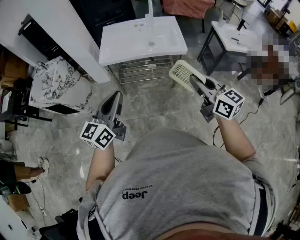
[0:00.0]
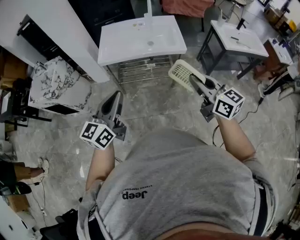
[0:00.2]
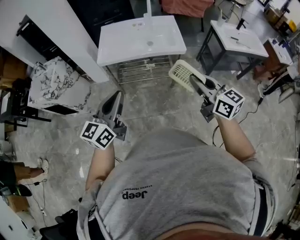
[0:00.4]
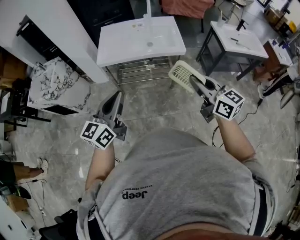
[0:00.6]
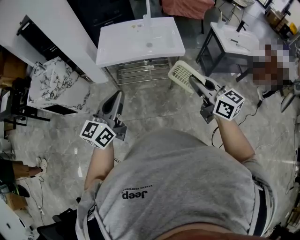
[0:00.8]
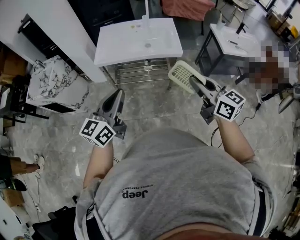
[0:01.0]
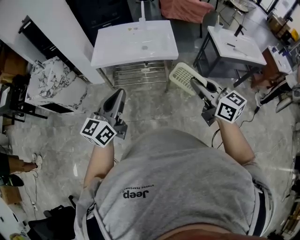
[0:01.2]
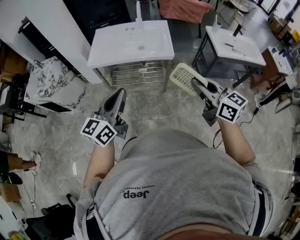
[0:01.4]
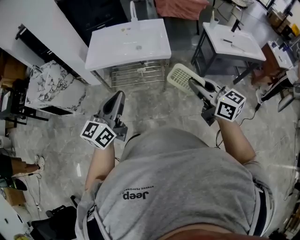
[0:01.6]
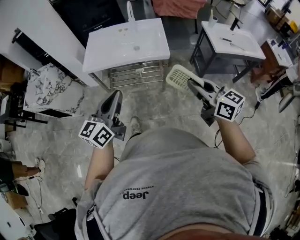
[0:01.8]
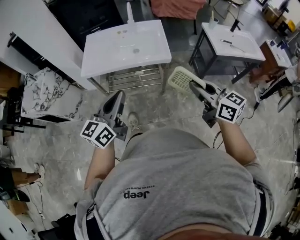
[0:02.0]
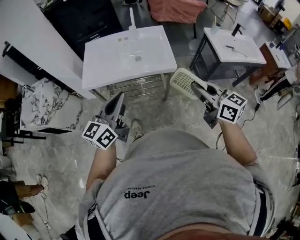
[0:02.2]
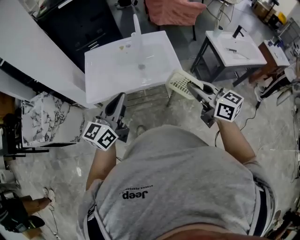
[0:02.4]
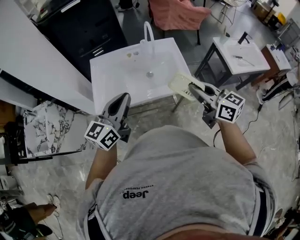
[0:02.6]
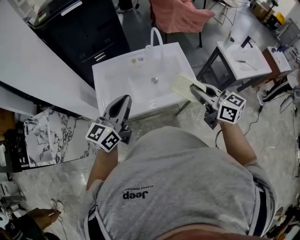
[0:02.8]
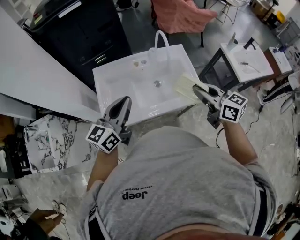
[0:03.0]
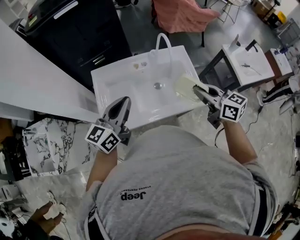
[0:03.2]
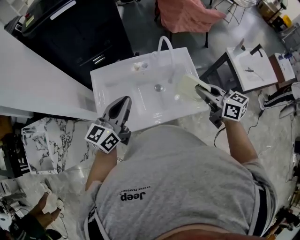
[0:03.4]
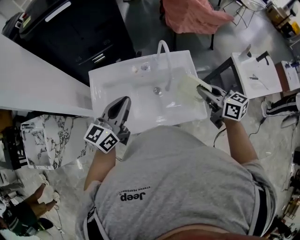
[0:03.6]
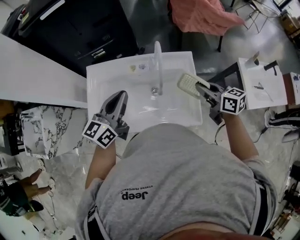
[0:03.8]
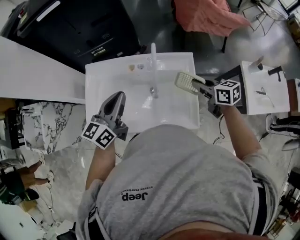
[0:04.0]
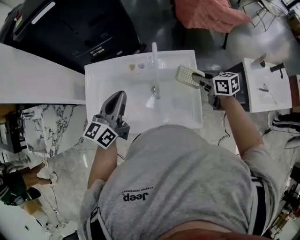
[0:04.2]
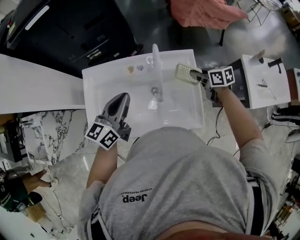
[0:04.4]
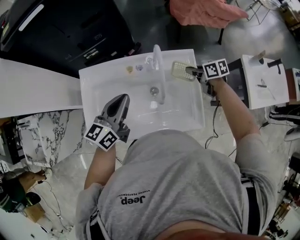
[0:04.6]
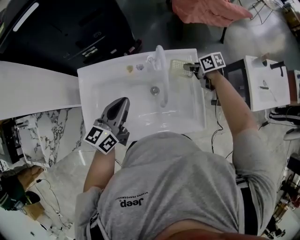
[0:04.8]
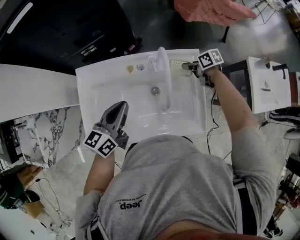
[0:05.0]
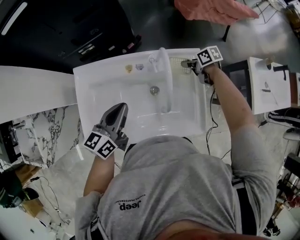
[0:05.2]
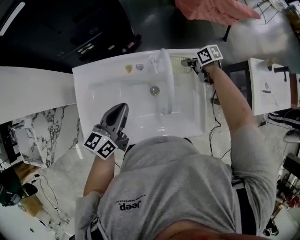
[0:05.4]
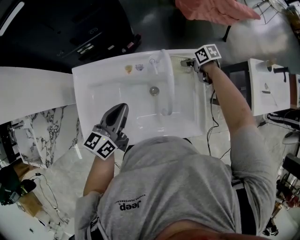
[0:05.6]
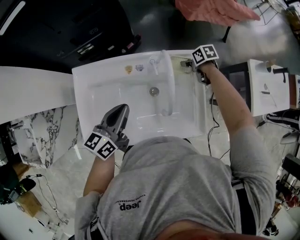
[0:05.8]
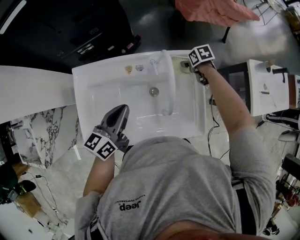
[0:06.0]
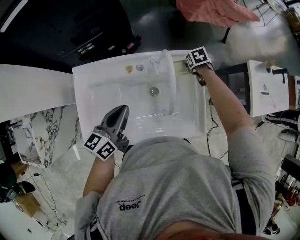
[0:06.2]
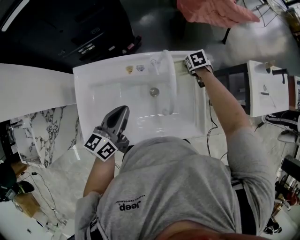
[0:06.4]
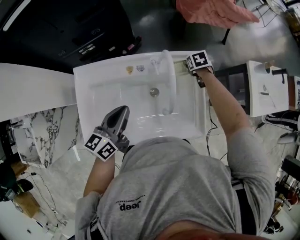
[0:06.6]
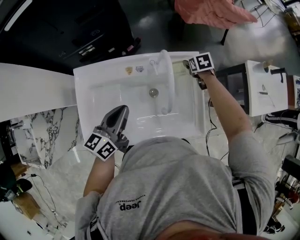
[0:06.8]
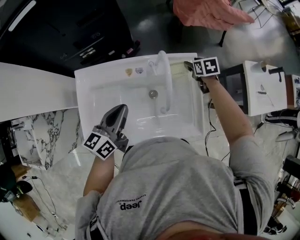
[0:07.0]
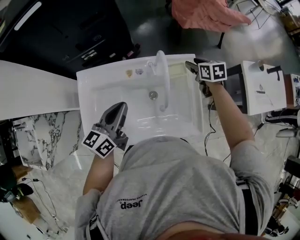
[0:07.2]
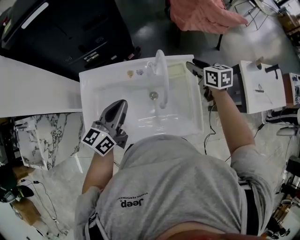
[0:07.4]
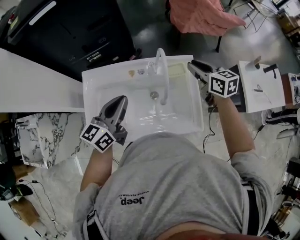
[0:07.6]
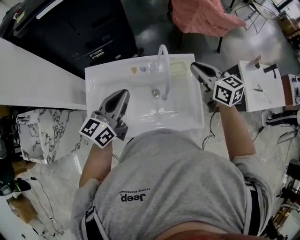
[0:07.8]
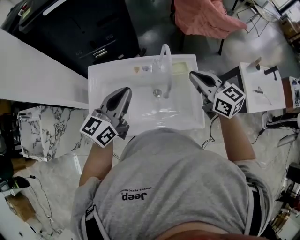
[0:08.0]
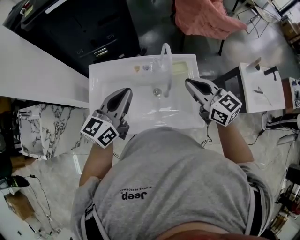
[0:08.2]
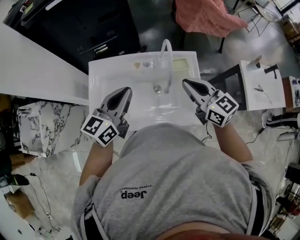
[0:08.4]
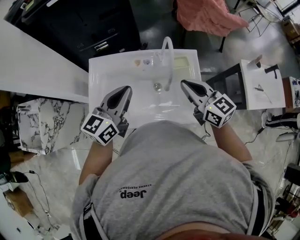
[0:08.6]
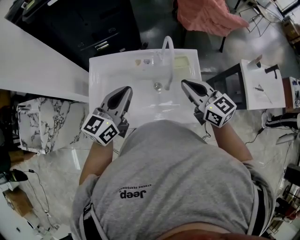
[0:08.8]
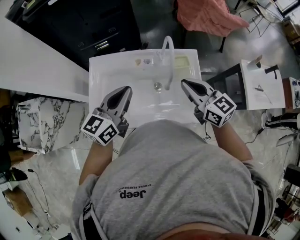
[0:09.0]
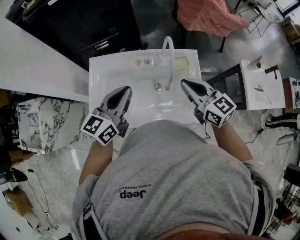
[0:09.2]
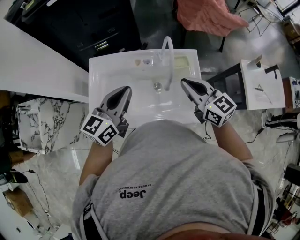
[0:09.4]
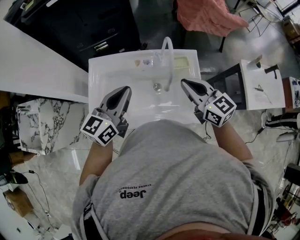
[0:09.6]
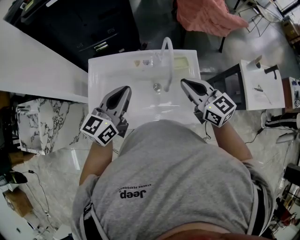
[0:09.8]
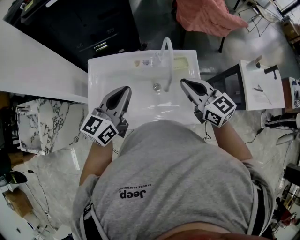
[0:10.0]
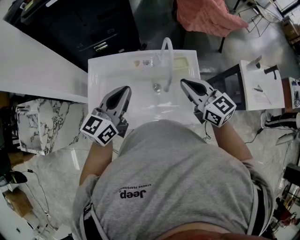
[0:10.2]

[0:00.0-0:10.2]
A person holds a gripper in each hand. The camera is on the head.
0.0 to 1.4 s: The two grippers go some 15 cm to the right.
1.4 to 3.0 s: Both grippers are carried forward, approximately 50 cm.
3.0 to 4.4 s: The left gripper moves forward, to the right and downward, about 20 cm. The right gripper shifts about 40 cm forward, downward and to the right, and changes its angle by roughly 30 degrees.
4.4 to 5.8 s: The right gripper goes approximately 15 cm downward and forward, rotates roughly 30 degrees, and opens up. Meanwhile the left gripper shifts roughly 5 cm downward.
5.8 to 7.2 s: The right gripper is displaced upward by some 15 cm, and changes its angle by approximately 30 degrees.
7.2 to 8.8 s: The left gripper goes some 10 cm upward and backward. The right gripper shifts some 30 cm backward, upward and to the left, angles its fingers upward, by about 30 degrees, and closes its fingers.
8.8 to 10.2 s: Both grippers stay put.

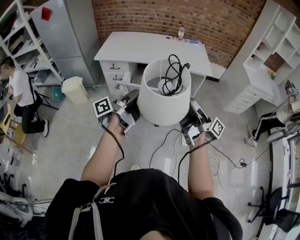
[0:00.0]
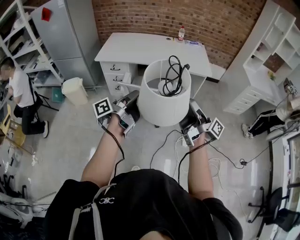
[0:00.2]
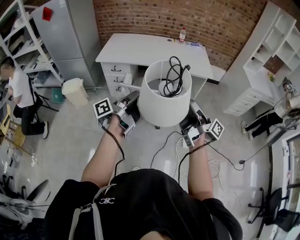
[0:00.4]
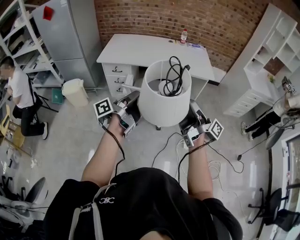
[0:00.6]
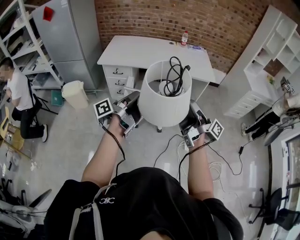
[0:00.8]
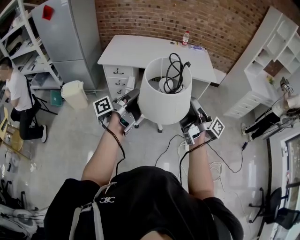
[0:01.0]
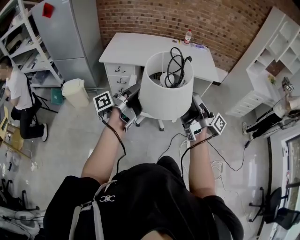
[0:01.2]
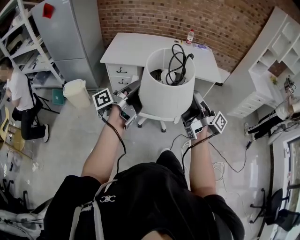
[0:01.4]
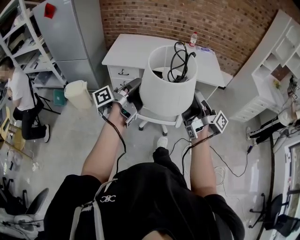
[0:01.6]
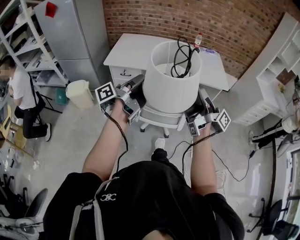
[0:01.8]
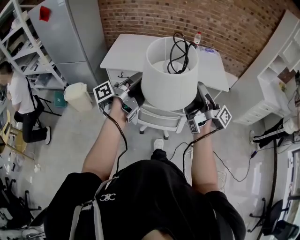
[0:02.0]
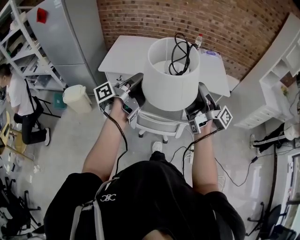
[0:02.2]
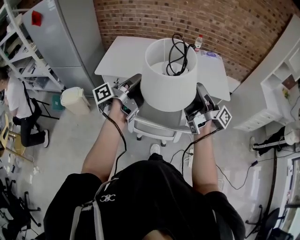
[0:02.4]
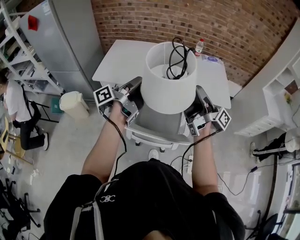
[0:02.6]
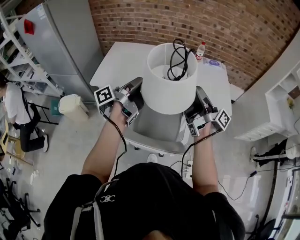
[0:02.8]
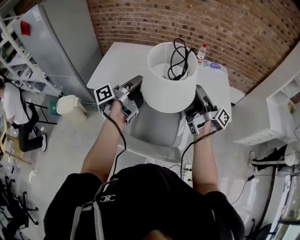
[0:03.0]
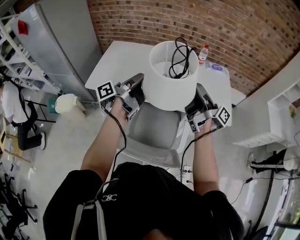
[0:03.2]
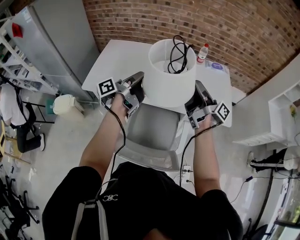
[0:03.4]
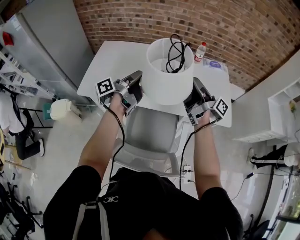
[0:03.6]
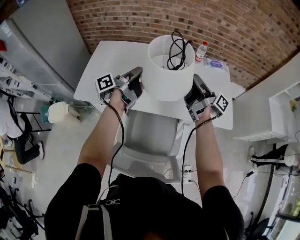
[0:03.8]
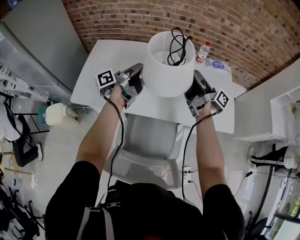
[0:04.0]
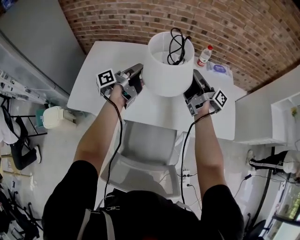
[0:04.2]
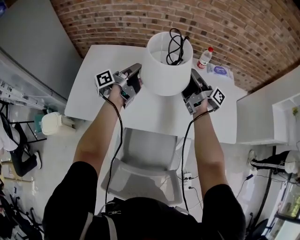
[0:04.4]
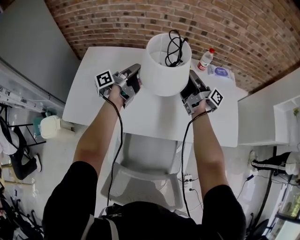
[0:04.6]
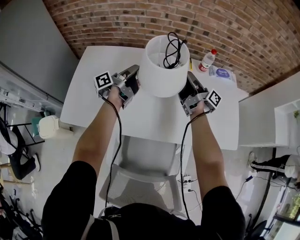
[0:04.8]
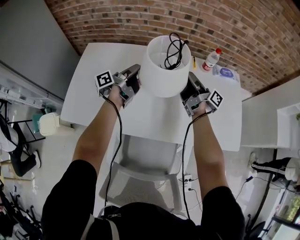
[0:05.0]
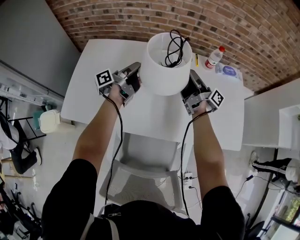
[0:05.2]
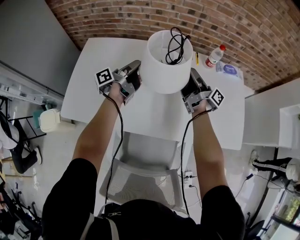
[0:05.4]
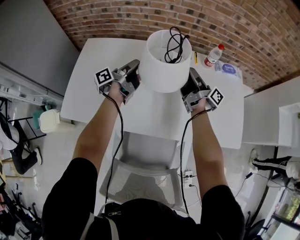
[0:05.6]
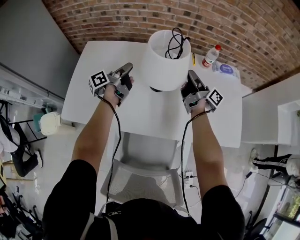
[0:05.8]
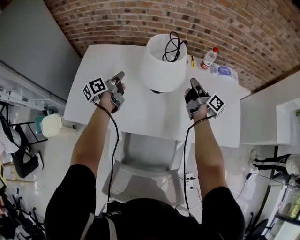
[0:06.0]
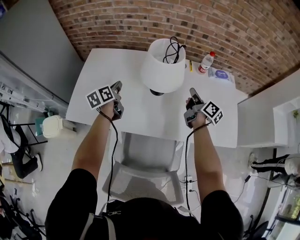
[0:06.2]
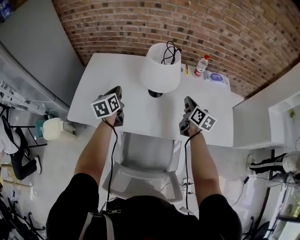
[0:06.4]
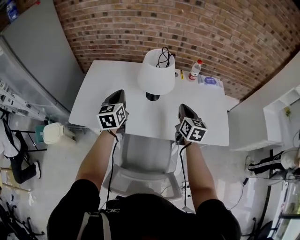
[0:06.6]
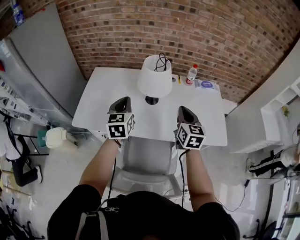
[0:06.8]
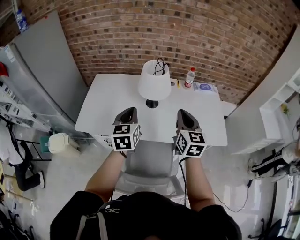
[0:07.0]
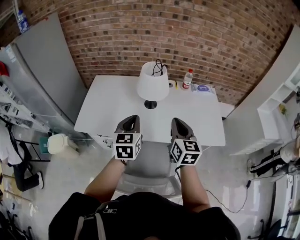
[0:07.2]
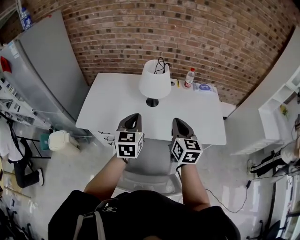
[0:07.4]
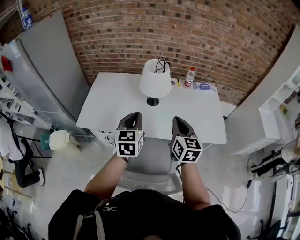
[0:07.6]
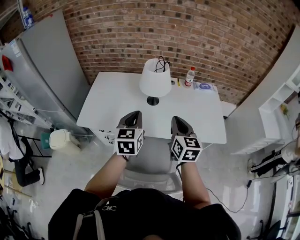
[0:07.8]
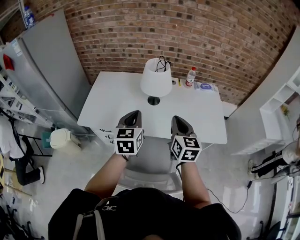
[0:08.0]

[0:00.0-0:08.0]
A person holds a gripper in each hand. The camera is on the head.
0.0 to 1.6 s: The right gripper goes approximately 15 cm forward and to the left; the left gripper shifts roughly 15 cm to the left and forward.
1.6 to 3.2 s: Both grippers are carried forward, about 40 cm.
3.2 to 4.8 s: Both grippers move forward and downward, about 40 cm.
4.8 to 6.4 s: The left gripper is displaced backward and to the left by some 15 cm, and rotates roughly 70 degrees. Meanwhile the right gripper travels backward by about 10 cm, and angles its fingers downward, by approximately 30 degrees.
6.4 to 8.0 s: The left gripper travels backward, upward and to the right by about 30 cm, and turns by some 20 degrees, while the right gripper shifts some 25 cm backward and upward, and turns by roughly 30 degrees.

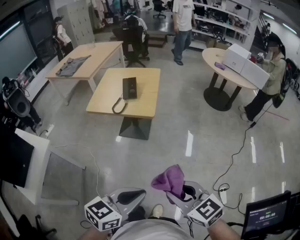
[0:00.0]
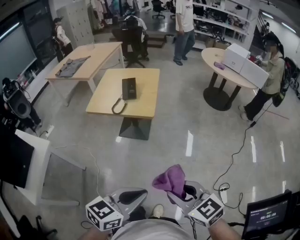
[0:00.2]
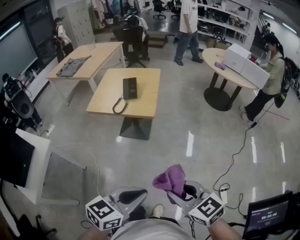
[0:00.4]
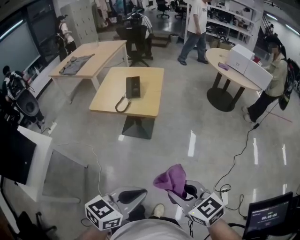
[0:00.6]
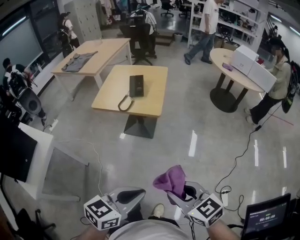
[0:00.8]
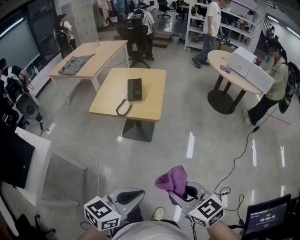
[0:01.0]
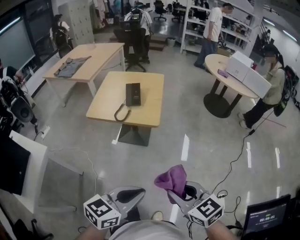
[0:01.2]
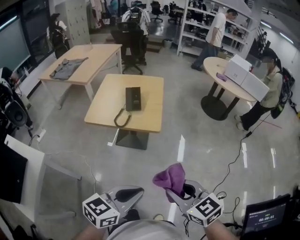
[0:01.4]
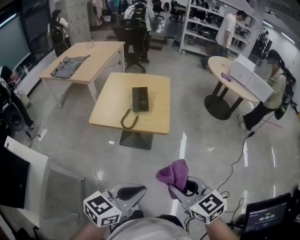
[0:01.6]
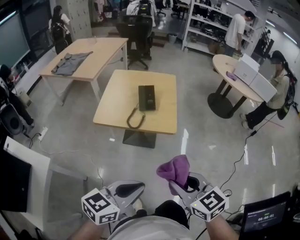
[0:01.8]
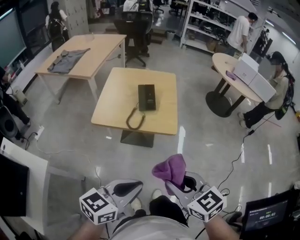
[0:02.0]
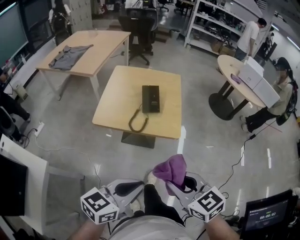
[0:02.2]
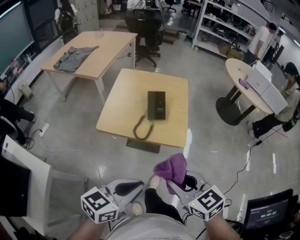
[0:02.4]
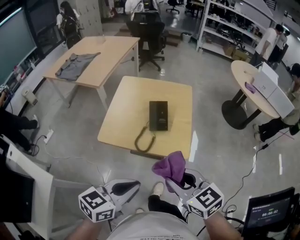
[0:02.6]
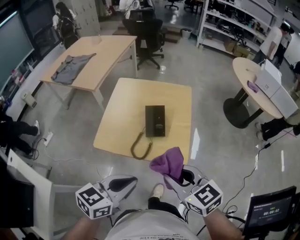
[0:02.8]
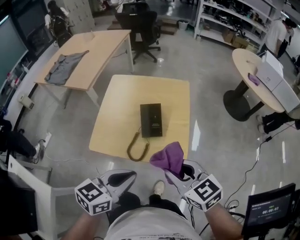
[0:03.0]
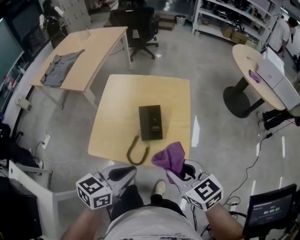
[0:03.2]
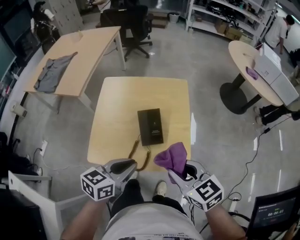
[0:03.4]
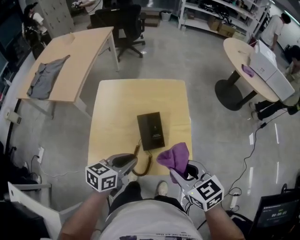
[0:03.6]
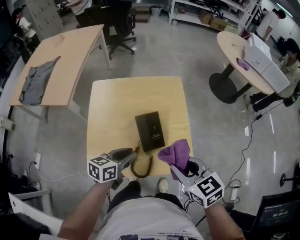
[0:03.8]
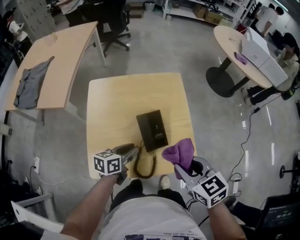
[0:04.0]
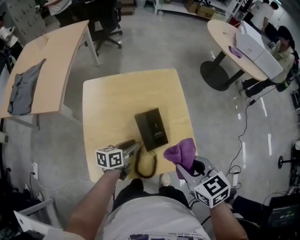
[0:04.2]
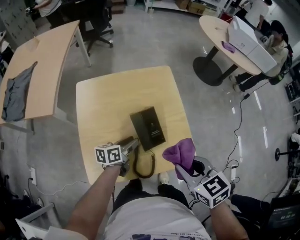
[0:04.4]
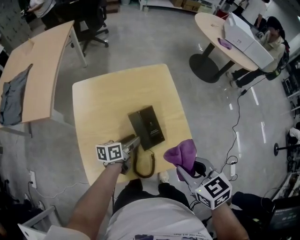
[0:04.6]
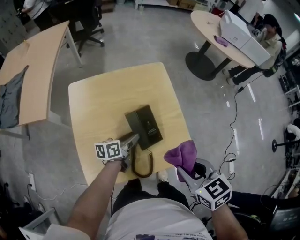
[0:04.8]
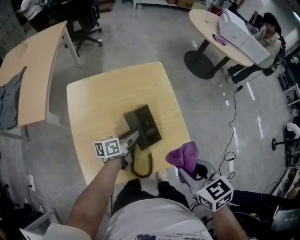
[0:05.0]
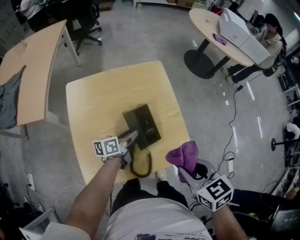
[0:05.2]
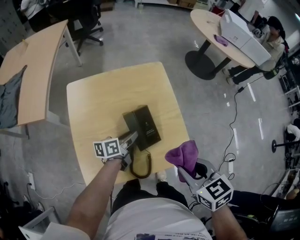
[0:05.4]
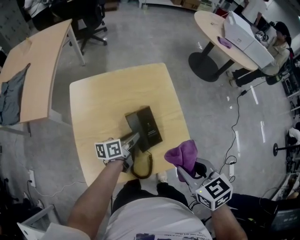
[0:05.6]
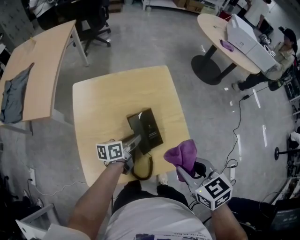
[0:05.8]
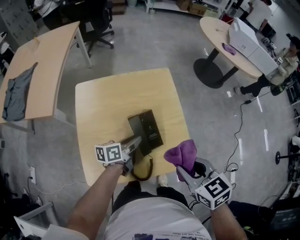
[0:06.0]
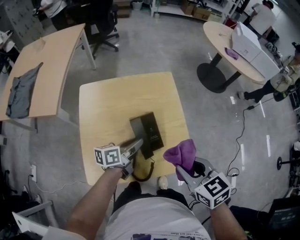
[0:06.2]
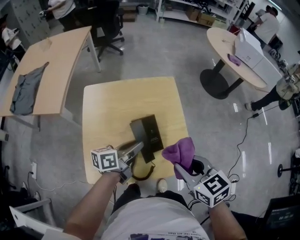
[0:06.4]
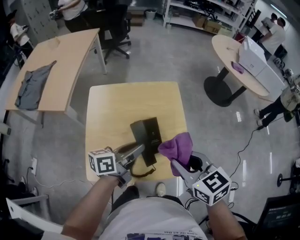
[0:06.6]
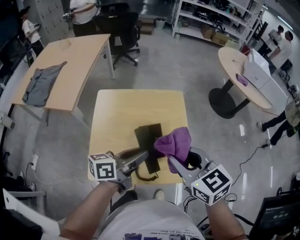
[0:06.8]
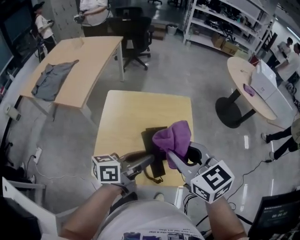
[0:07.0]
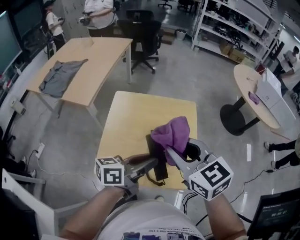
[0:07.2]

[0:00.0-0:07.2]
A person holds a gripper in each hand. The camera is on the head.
0.0 to 1.4 s: The grippers both shift forward and to the left by some 10 cm.
1.4 to 2.8 s: The grippers both shift forward and to the left by some 30 cm.
2.8 to 4.4 s: The left gripper moves forward and downward, roughly 35 cm, turns by roughly 30 degrees, and opens up. Meanwhile the right gripper shifts about 10 cm forward and downward, and swivels about 30 degrees.
4.4 to 5.8 s: The grippers stay close to where they were, moving slightly.
5.8 to 7.2 s: The left gripper shifts about 20 cm upward, and swivels about 20 degrees. Meanwhile the right gripper moves upward, to the left and forward, approximately 20 cm, and changes its angle by some 30 degrees.
